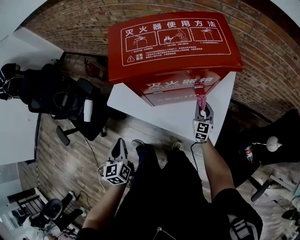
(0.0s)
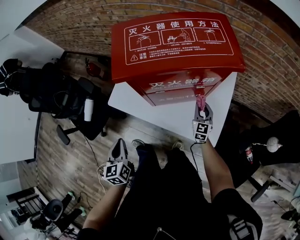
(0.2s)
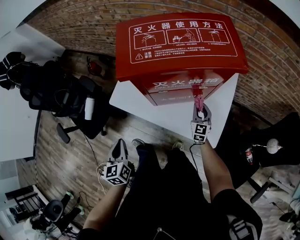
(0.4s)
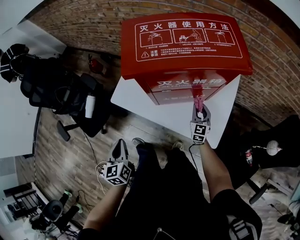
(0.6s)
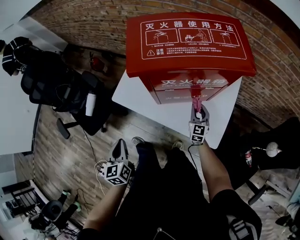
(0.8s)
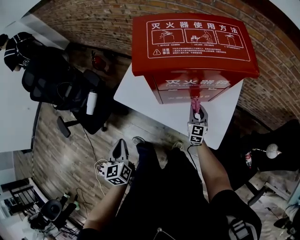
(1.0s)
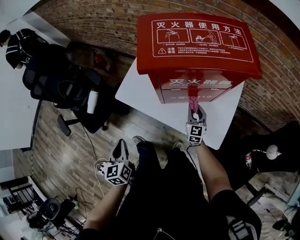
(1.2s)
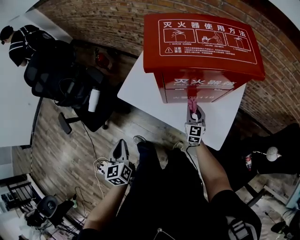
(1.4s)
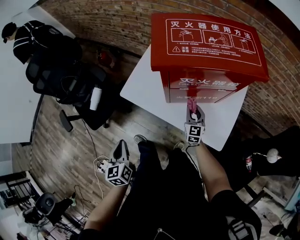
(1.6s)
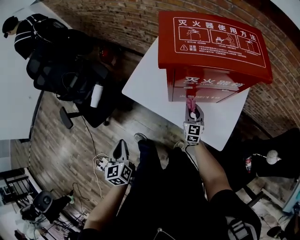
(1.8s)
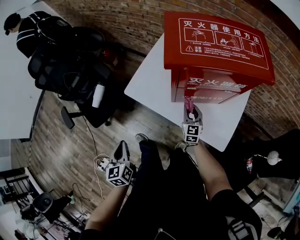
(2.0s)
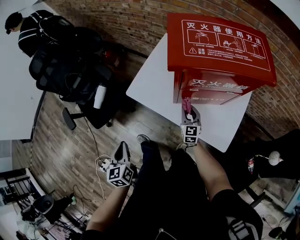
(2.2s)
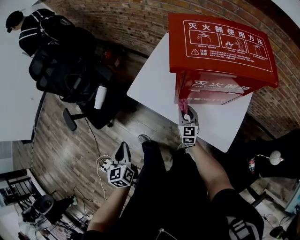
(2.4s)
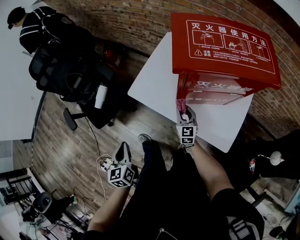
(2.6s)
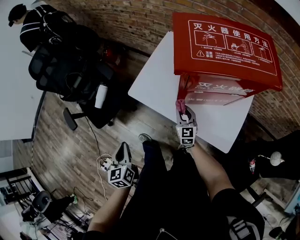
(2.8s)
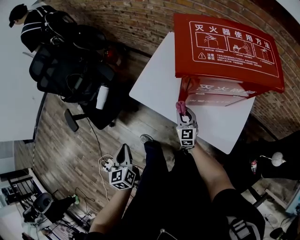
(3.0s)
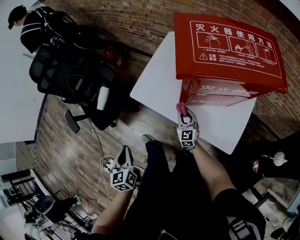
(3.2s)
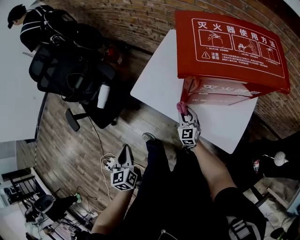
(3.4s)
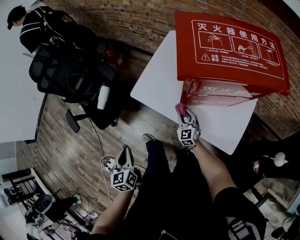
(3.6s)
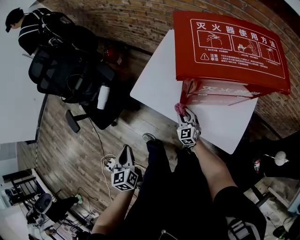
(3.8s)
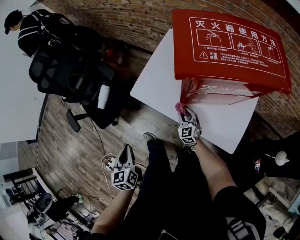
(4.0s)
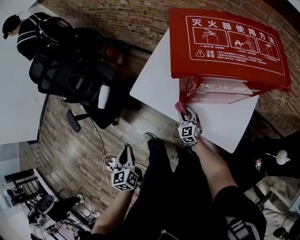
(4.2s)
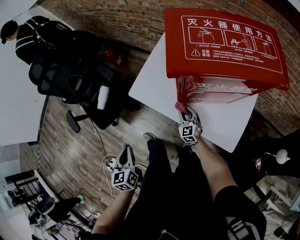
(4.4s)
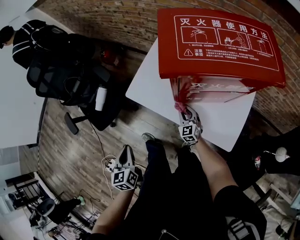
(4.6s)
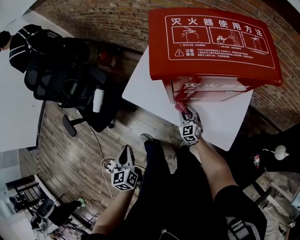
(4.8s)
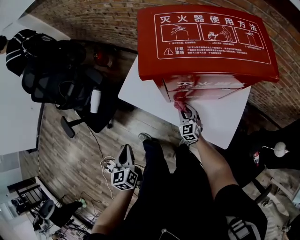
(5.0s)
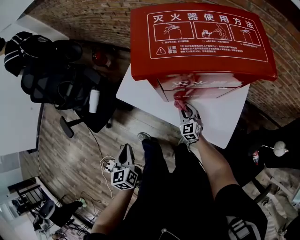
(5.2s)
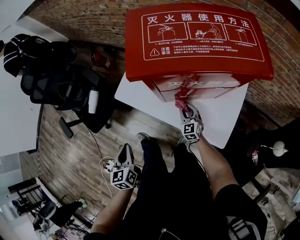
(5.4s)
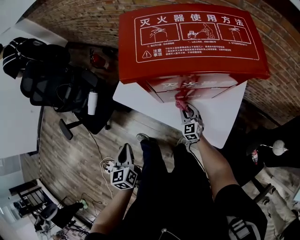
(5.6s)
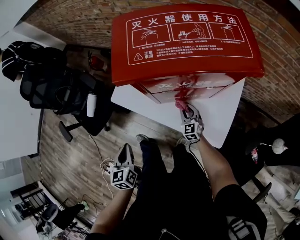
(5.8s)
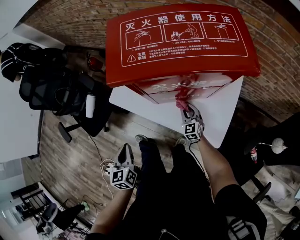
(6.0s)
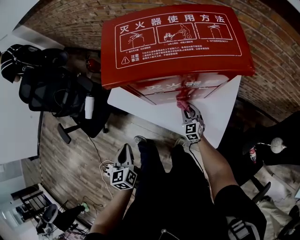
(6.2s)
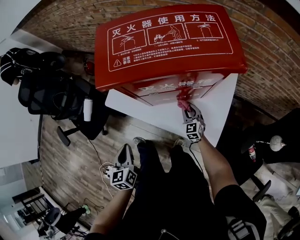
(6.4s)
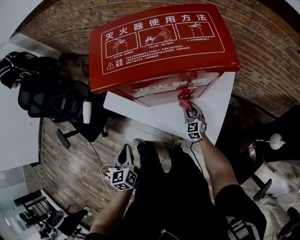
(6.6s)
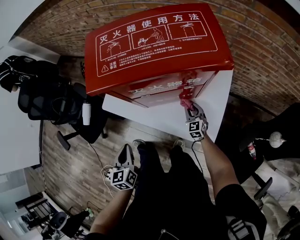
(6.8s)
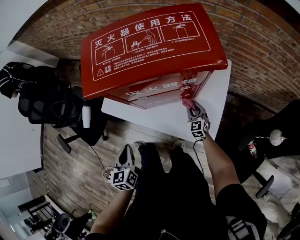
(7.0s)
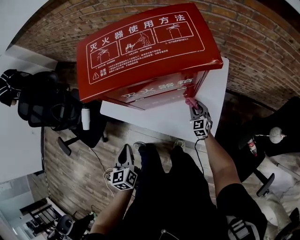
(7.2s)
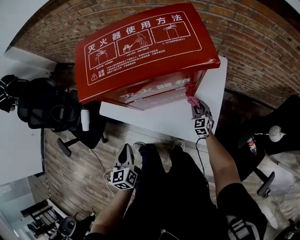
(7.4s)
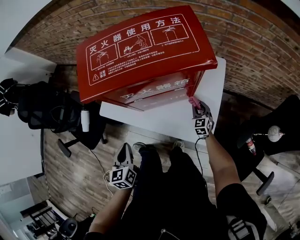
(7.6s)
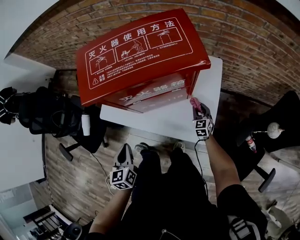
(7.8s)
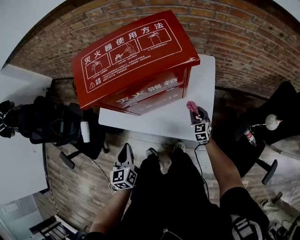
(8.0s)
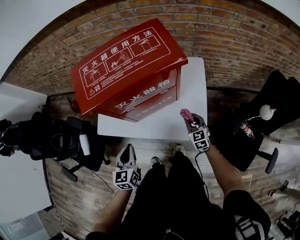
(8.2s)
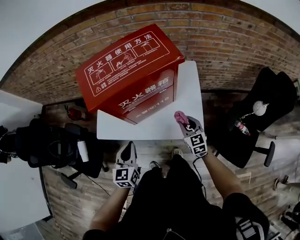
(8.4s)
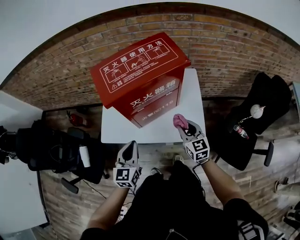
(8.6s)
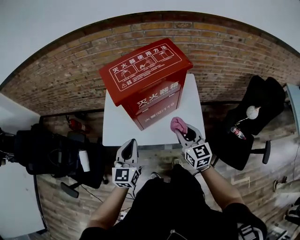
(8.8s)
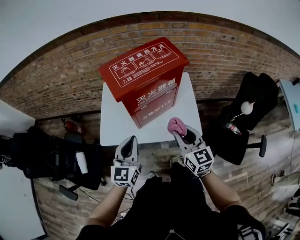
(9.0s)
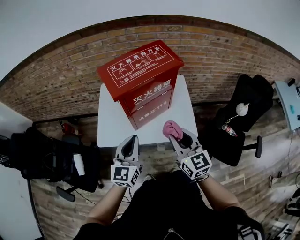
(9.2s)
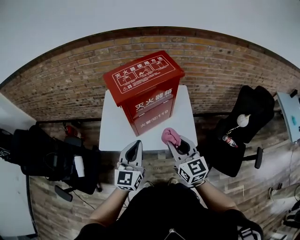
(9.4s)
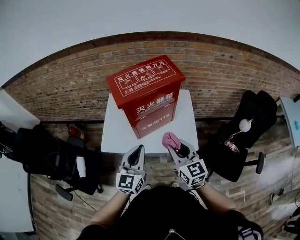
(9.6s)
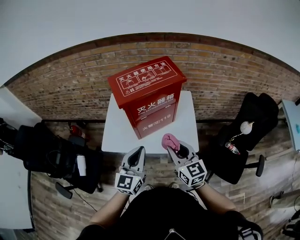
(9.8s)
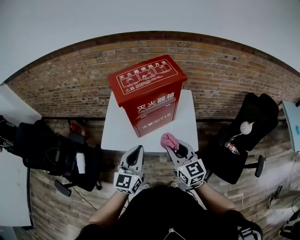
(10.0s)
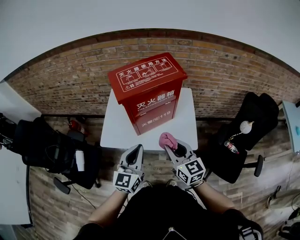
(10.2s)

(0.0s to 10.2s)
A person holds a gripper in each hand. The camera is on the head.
0.0s - 1.4s: The left gripper is displaced to the left by roughly 5 cm, while the right gripper travels to the left by some 15 cm.
1.4s - 3.0s: The right gripper is displaced to the left by some 15 cm. The left gripper travels to the left by about 5 cm.
3.0s - 4.4s: The right gripper shifts about 5 cm downward.
4.4s - 5.8s: The grippers both shift to the right by approximately 10 cm.
5.8s - 7.2s: The right gripper shifts approximately 15 cm to the right. The left gripper is displaced to the right by some 10 cm.
7.2s - 8.8s: The left gripper shifts approximately 15 cm upward, and swivels about 40 degrees, while the right gripper heads upward and backward, covering approximately 35 cm, and changes its angle by about 30 degrees.
8.8s - 10.2s: The right gripper travels backward and upward by about 10 cm, while the left gripper is displaced backward, upward and to the right by about 10 cm.

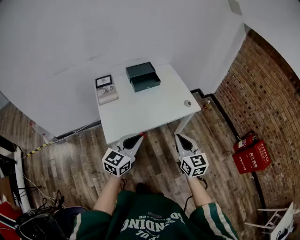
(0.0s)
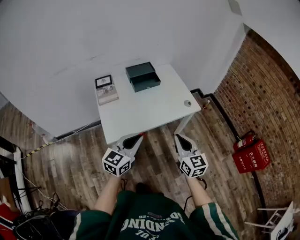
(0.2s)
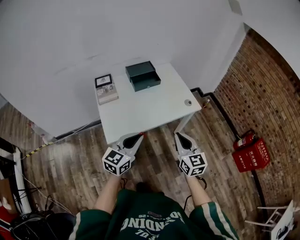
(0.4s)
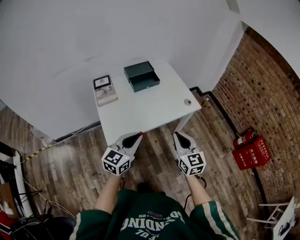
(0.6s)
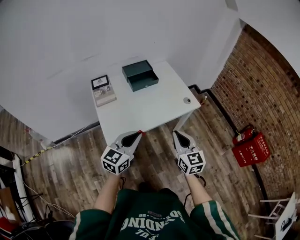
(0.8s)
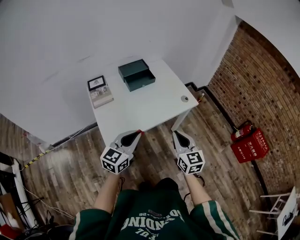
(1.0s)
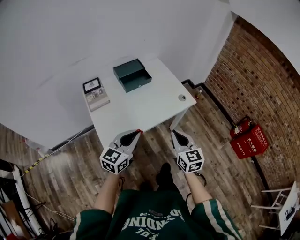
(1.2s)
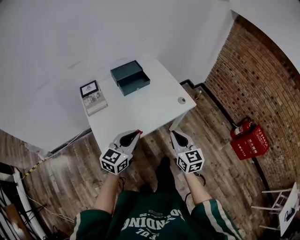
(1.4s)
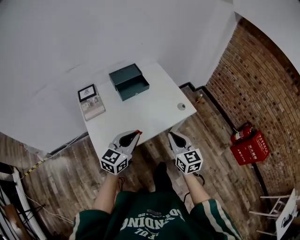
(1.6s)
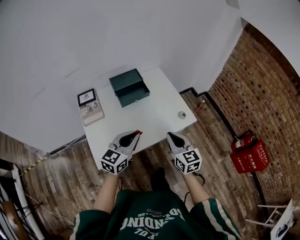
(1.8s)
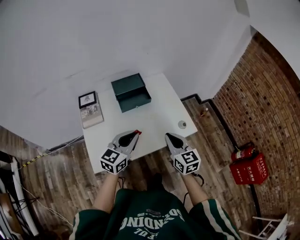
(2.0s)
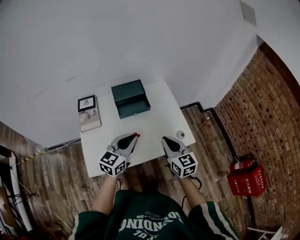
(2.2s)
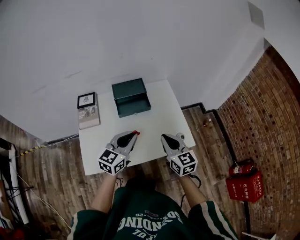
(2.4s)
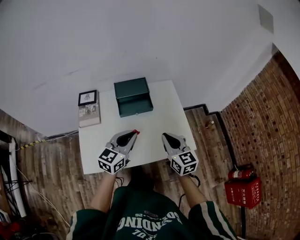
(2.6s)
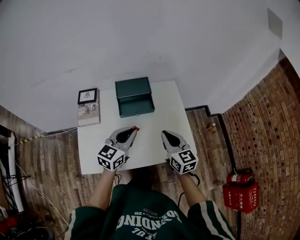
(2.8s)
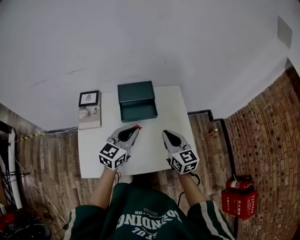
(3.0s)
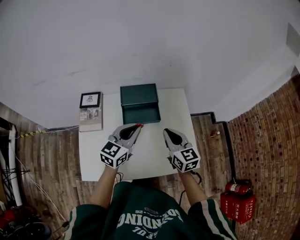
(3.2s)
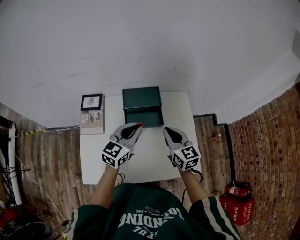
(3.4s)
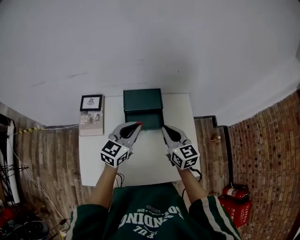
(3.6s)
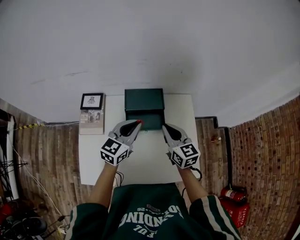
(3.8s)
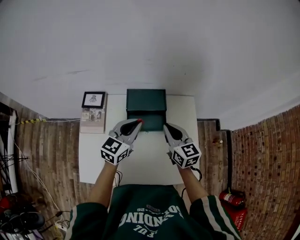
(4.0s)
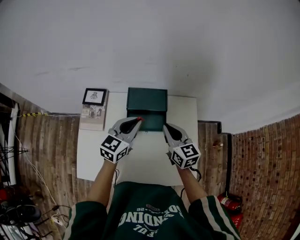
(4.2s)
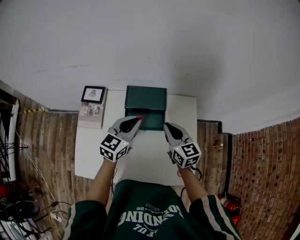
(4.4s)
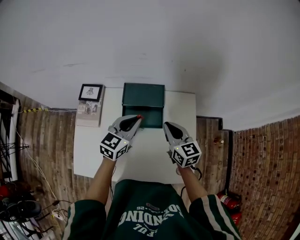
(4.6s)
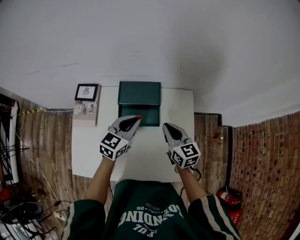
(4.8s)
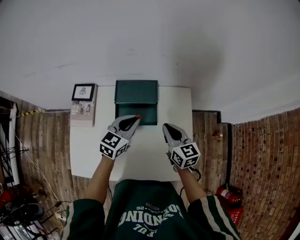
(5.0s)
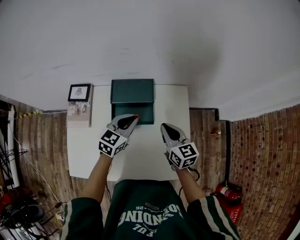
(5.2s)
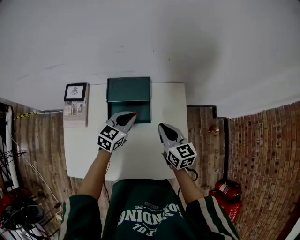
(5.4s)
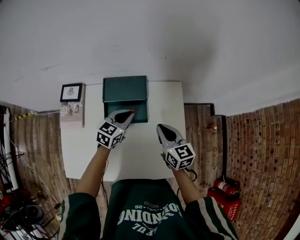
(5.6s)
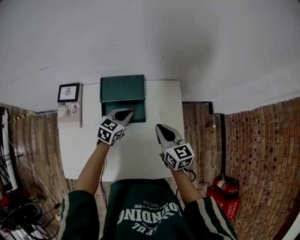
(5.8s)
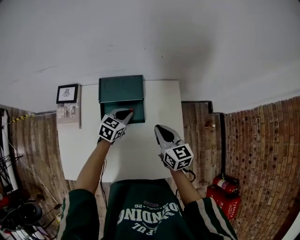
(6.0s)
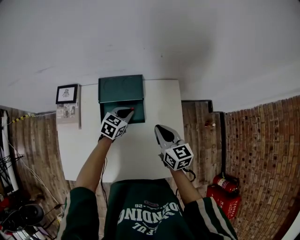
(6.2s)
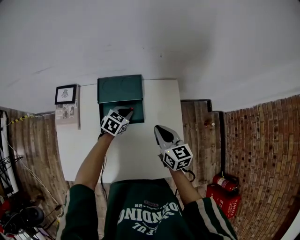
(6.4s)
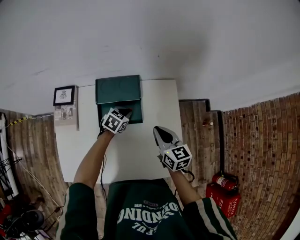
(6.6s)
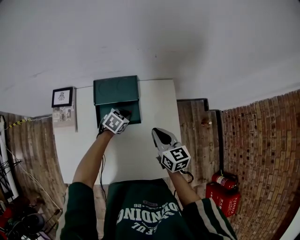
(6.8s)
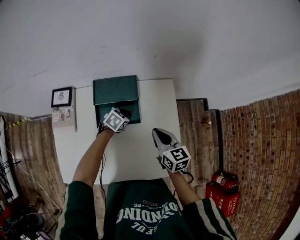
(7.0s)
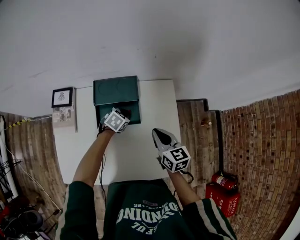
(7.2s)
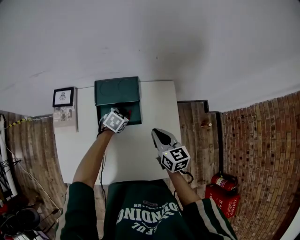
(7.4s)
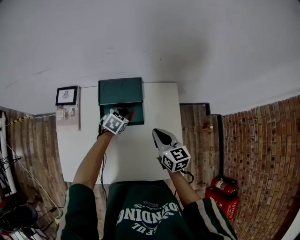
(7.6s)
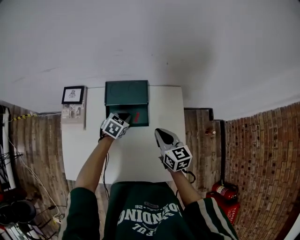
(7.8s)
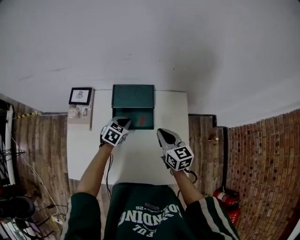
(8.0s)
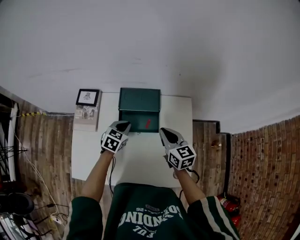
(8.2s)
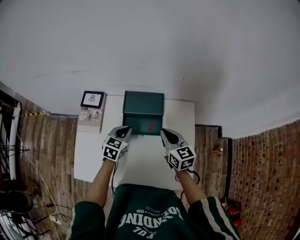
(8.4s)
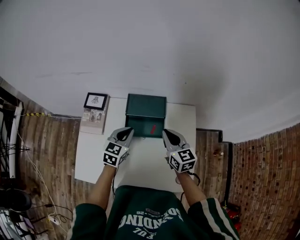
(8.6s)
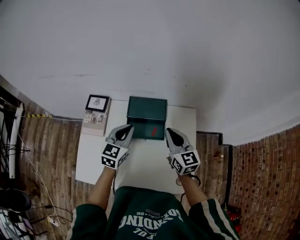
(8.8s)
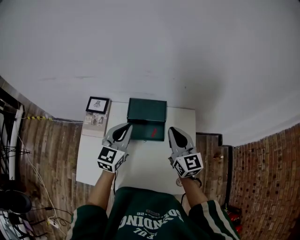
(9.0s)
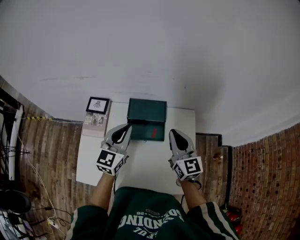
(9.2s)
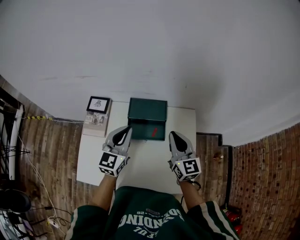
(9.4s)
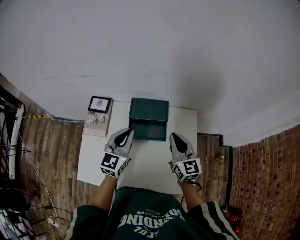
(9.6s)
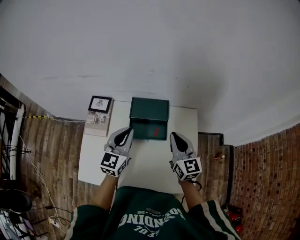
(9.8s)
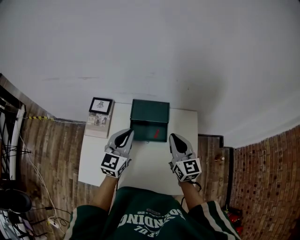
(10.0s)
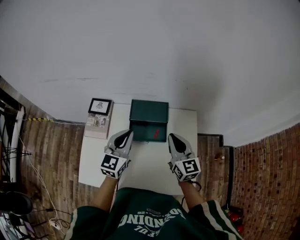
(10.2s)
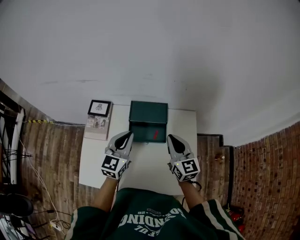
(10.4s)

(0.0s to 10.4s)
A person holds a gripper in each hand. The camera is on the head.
0.0s - 1.4s: The two grippers go approximately 5 cm forward.
1.4s - 3.0s: Both grippers travel together forward, some 30 cm. The right gripper swivels some 30 degrees.
3.0s - 4.4s: Both grippers travel together forward, approximately 15 cm.
4.4s - 6.0s: The left gripper moves downward and to the right, about 20 cm, and turns by about 20 degrees, while the right gripper is displaced to the right and downward by roughly 10 cm.
6.0s - 7.4s: The left gripper heads downward, covering some 5 cm, and rotates some 20 degrees.
7.4s - 9.0s: The left gripper shifts approximately 30 cm upward, and points its fingers approximately 50 degrees further upward, while the right gripper shifts some 15 cm upward, and swivels roughly 30 degrees.
9.0s - 10.4s: There are only small adjustments of the grippers.

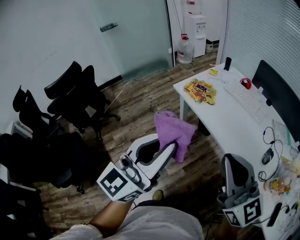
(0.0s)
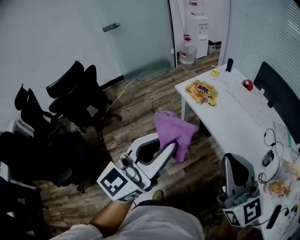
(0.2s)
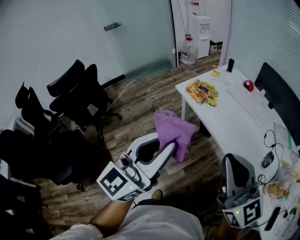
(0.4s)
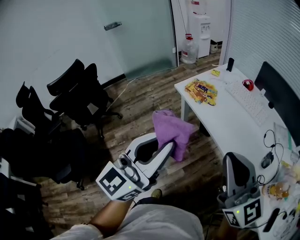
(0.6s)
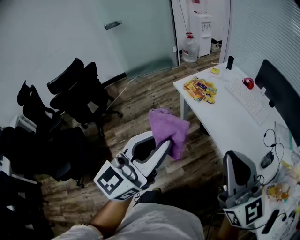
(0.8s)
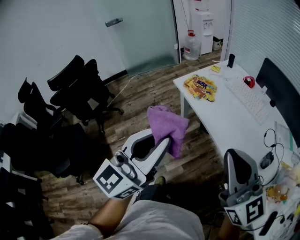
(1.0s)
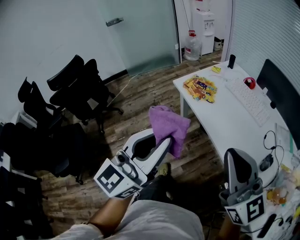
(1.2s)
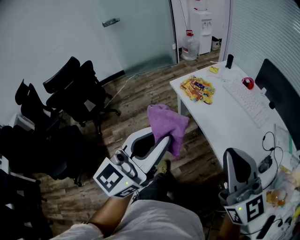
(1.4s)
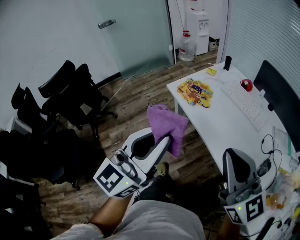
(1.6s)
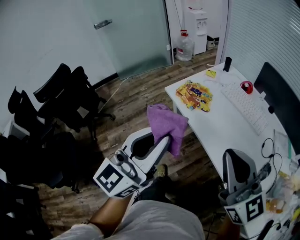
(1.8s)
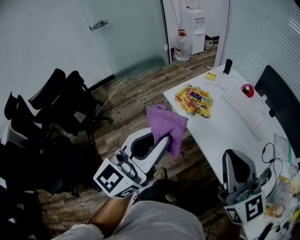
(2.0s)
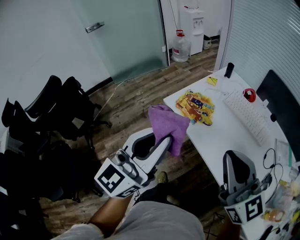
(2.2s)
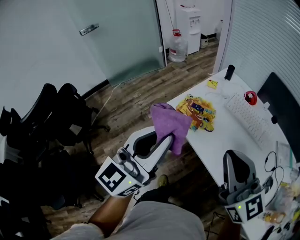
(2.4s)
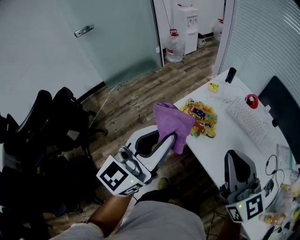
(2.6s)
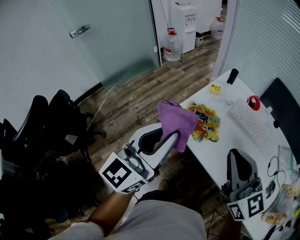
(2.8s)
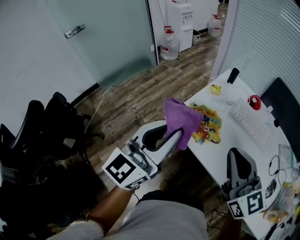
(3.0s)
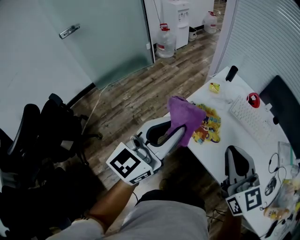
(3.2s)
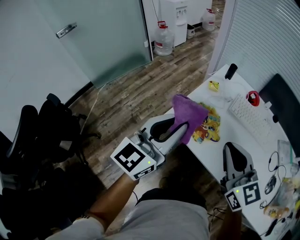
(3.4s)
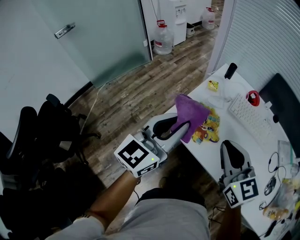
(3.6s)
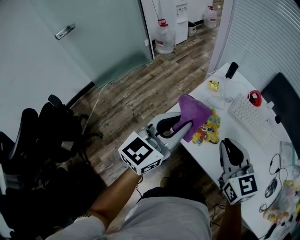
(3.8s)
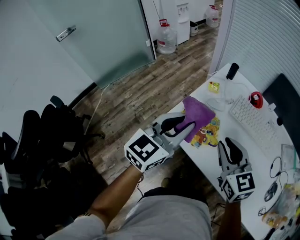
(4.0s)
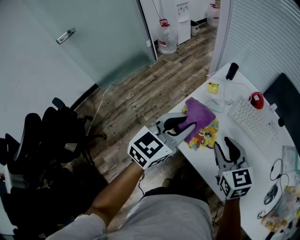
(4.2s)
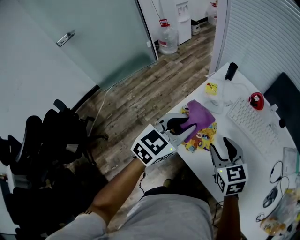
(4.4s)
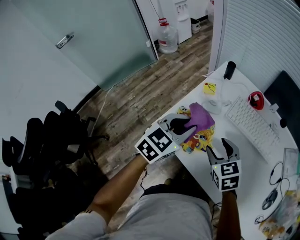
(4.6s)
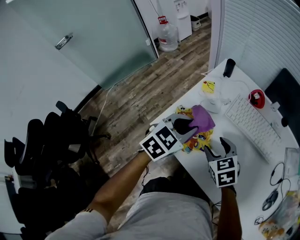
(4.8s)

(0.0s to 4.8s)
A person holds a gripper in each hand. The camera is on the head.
0.0s - 1.6s: The right gripper shifts some 10 cm forward and to the right; the left gripper travels forward by roughly 5 cm.
1.6s - 3.2s: Both grippers move forward, some 30 cm. The right gripper swivels roughly 20 degrees.
3.2s - 4.8s: The left gripper shifts some 25 cm downward, forward and to the right, and tips its fingers downward by roughly 40 degrees; the right gripper goes roughly 25 cm downward and forward, tips its fingers downward by about 40 degrees, and opens up.
